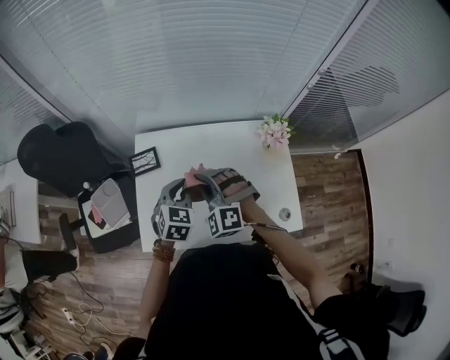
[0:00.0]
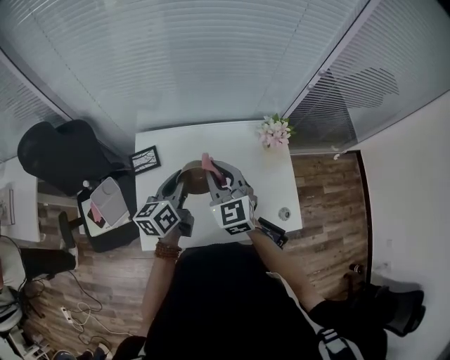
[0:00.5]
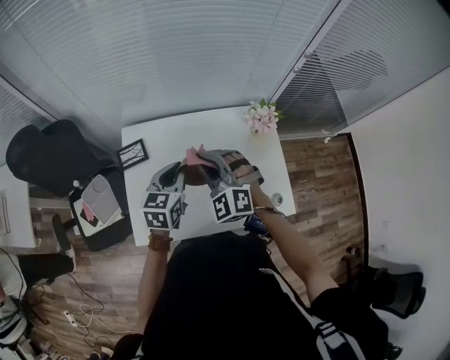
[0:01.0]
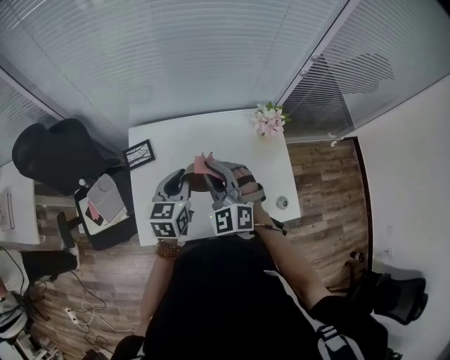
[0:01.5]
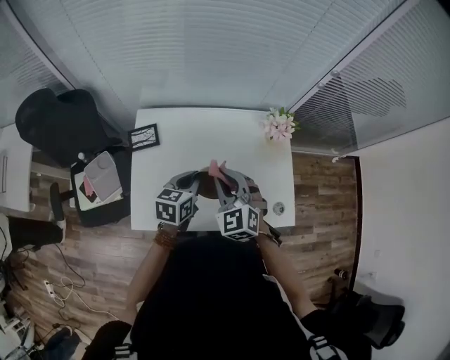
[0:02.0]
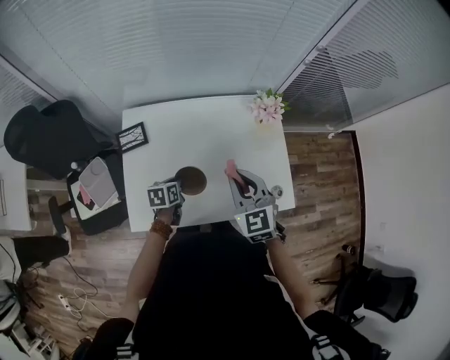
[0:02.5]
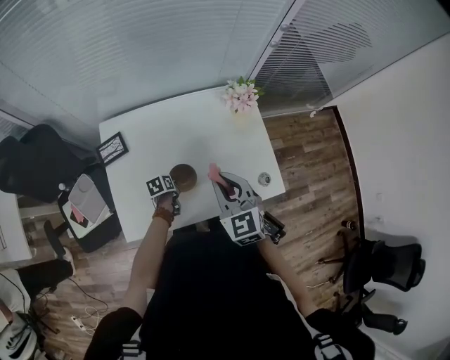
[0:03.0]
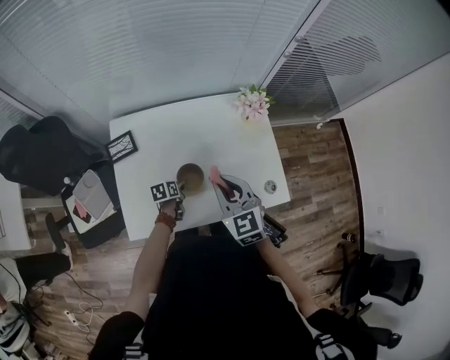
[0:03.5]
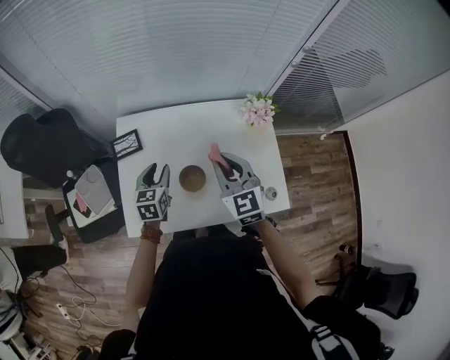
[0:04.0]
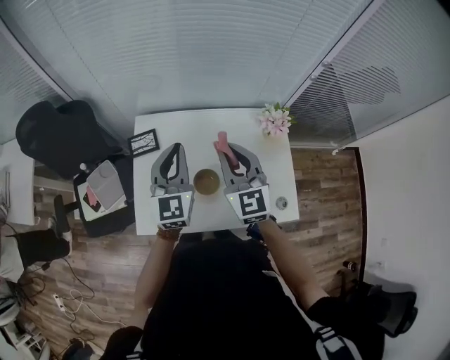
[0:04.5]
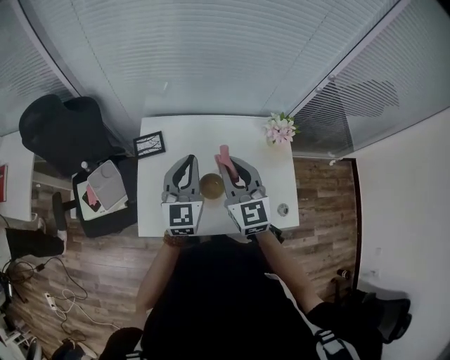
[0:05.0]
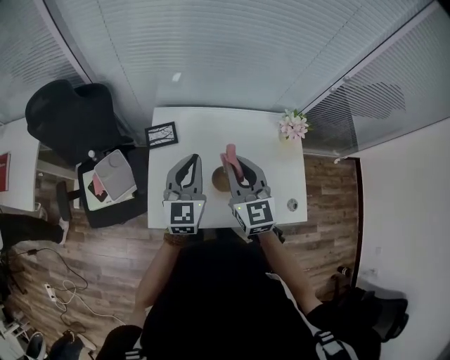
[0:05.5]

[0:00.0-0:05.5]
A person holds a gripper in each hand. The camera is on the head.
0:00.0 to 0:02.0: The right gripper shifts some 5 cm to the right, and rotates some 30 degrees; the left gripper moves some 5 cm upward and comes back, and changes its angle by approximately 30 degrees.
0:02.0 to 0:03.5: The left gripper goes approximately 25 cm downward, swivels roughly 30 degrees, and opens up, while the right gripper moves to the right, approximately 5 cm, and changes its angle by about 20 degrees.
0:03.5 to 0:05.5: The right gripper heads to the left, upward and forward, covering approximately 15 cm, while the left gripper shifts approximately 35 cm upward, angles its fingers upward, by approximately 40 degrees, and closes.

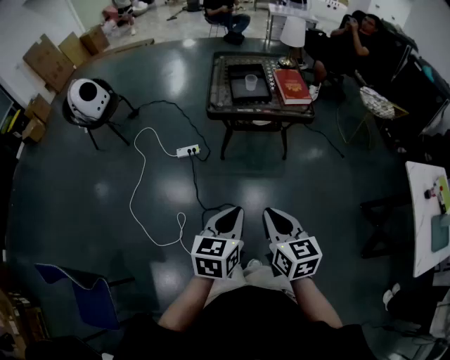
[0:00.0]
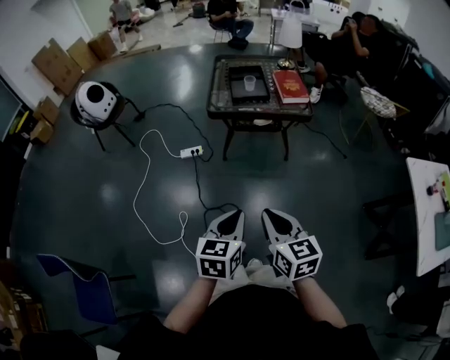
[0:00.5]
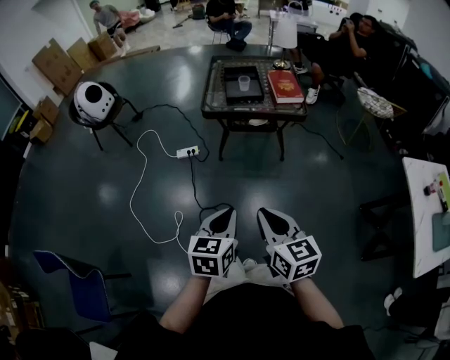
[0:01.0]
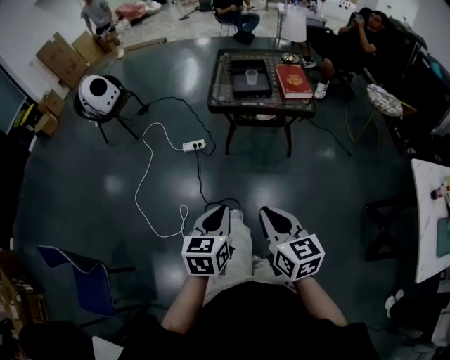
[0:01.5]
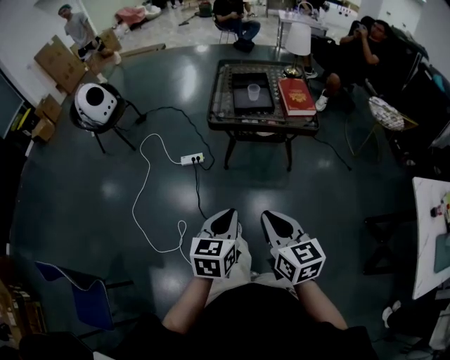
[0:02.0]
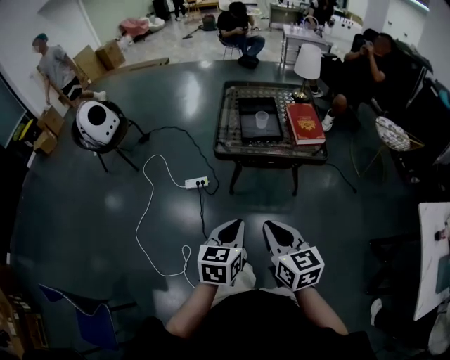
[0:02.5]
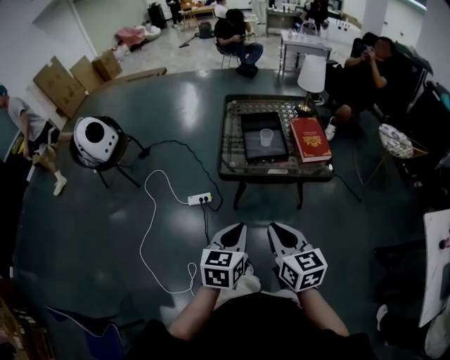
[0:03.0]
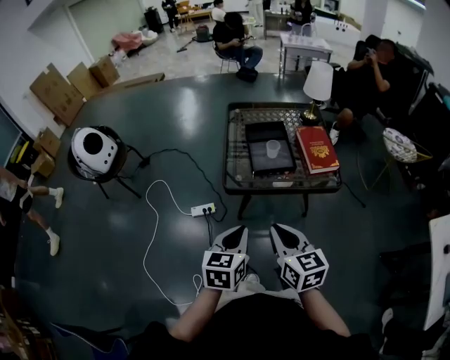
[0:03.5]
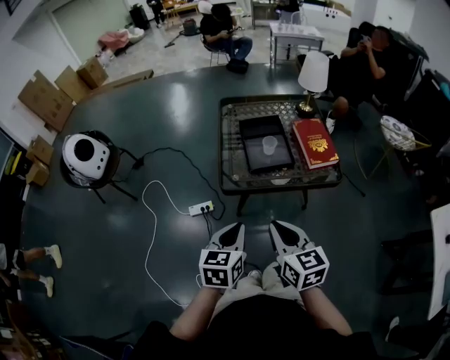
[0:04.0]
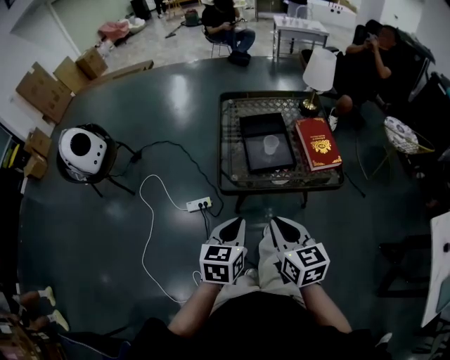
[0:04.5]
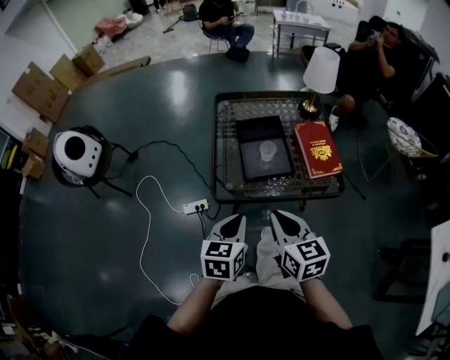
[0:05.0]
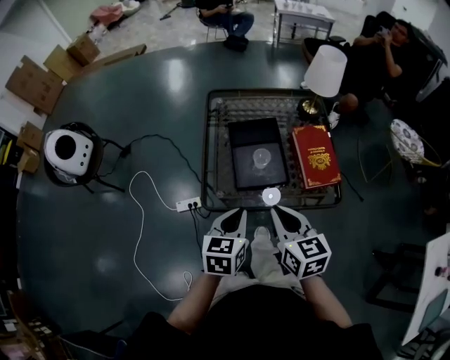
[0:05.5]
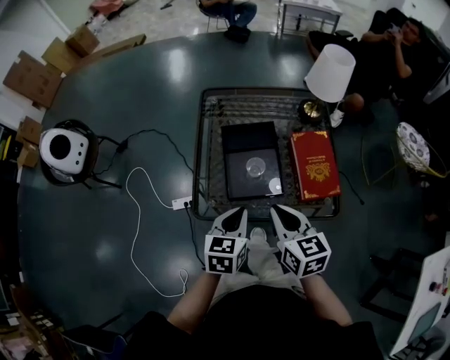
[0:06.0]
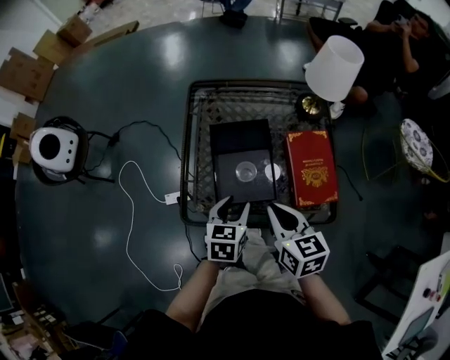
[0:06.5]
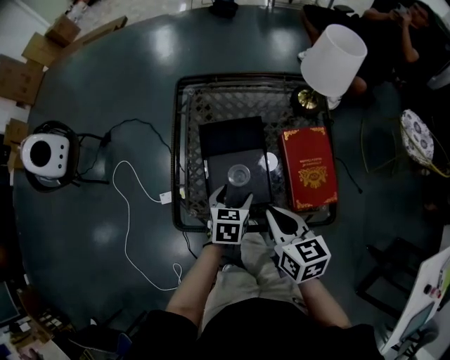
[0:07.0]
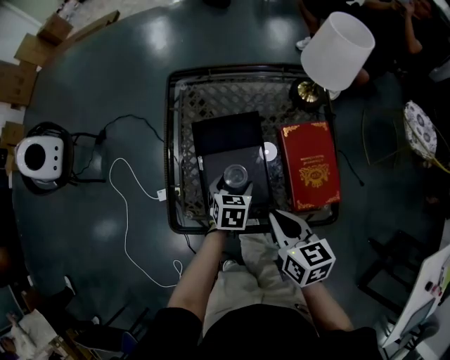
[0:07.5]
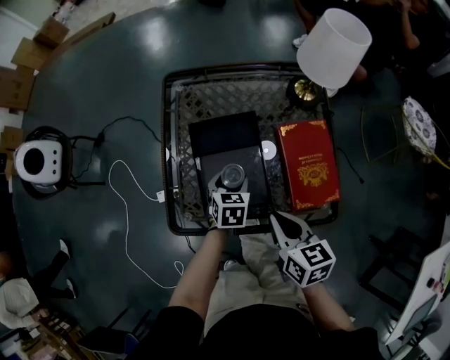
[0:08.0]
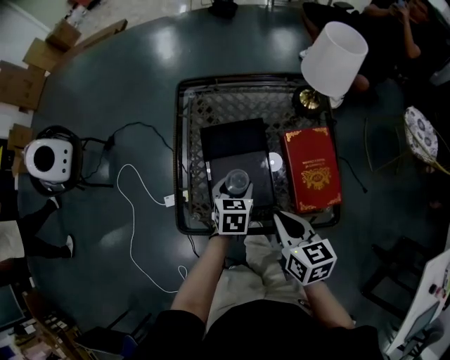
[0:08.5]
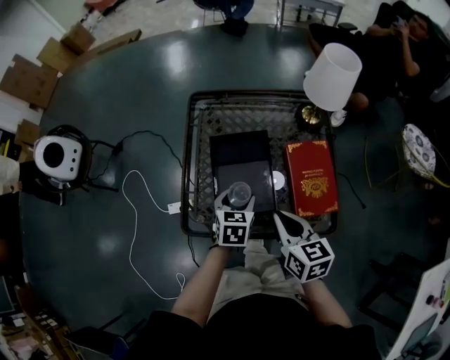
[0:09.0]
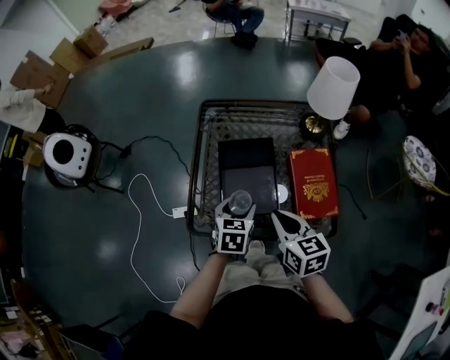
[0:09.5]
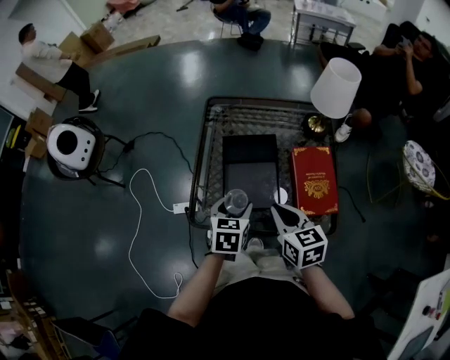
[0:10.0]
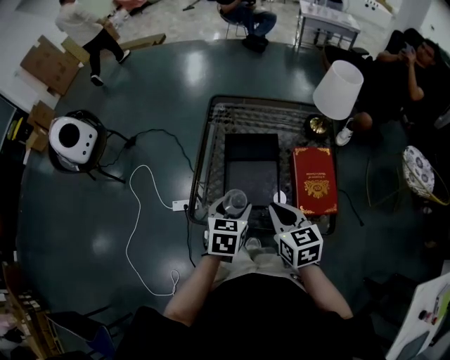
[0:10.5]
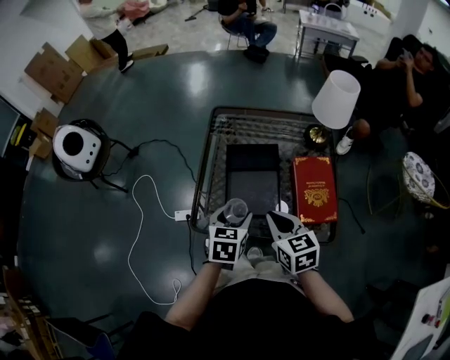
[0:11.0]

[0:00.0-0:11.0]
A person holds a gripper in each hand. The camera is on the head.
0:00.0 to 0:02.0: The right gripper shifts by about 5 cm, while the left gripper moves approximately 5 cm.
0:02.0 to 0:03.5: Both grippers travel together forward, approximately 25 cm.
0:03.5 to 0:05.5: The grippers both shift forward by approximately 20 cm.
0:05.5 to 0:07.5: The left gripper goes some 30 cm forward, downward and to the right, turns by about 20 degrees, and opens. Meanwhile the right gripper goes roughly 20 cm forward, downward and to the right.
0:07.5 to 0:09.0: The left gripper heads upward, covering roughly 10 cm.
0:09.0 to 0:11.0: The left gripper is displaced upward and backward by about 10 cm.

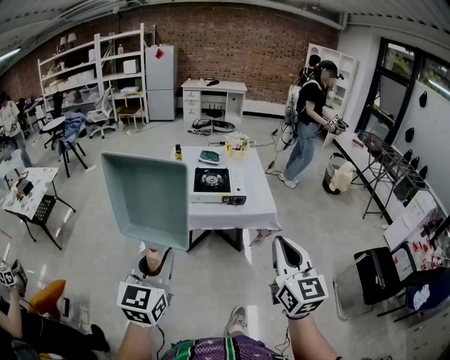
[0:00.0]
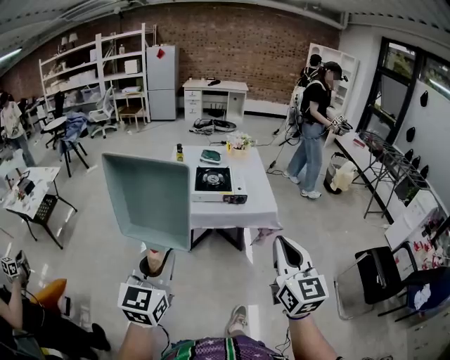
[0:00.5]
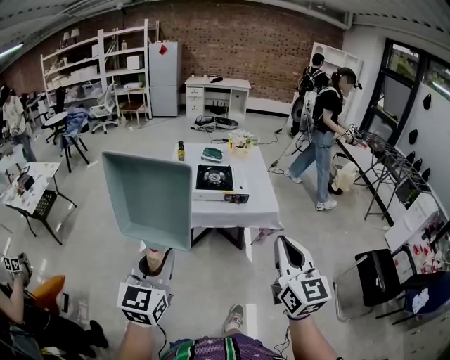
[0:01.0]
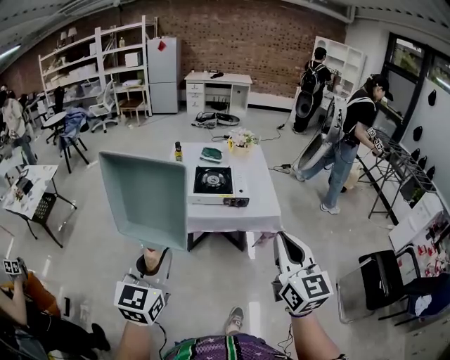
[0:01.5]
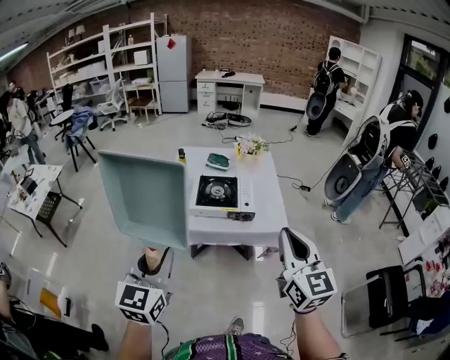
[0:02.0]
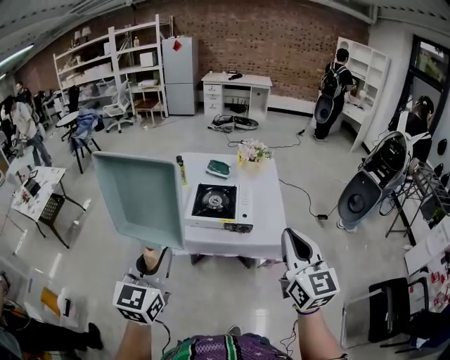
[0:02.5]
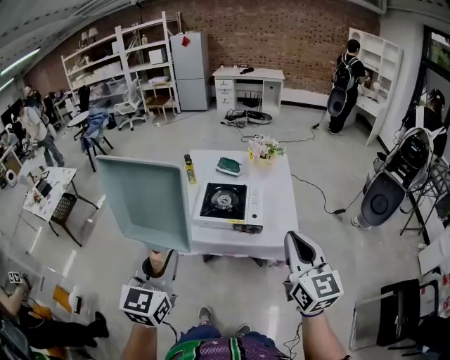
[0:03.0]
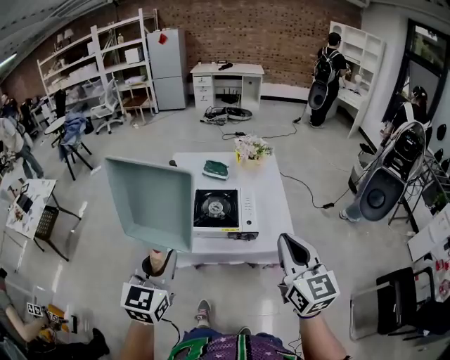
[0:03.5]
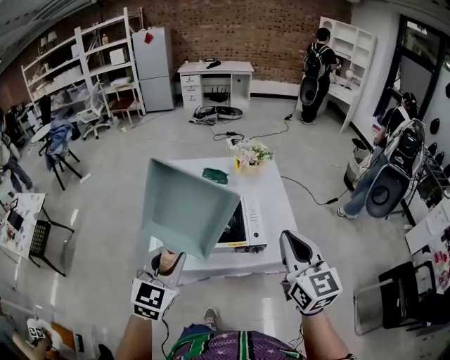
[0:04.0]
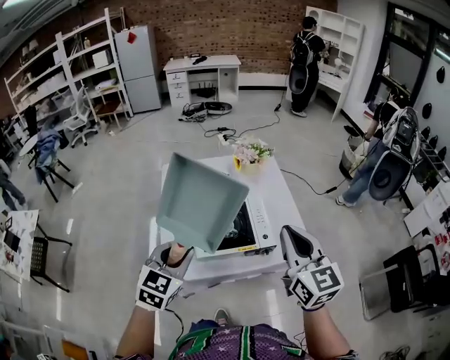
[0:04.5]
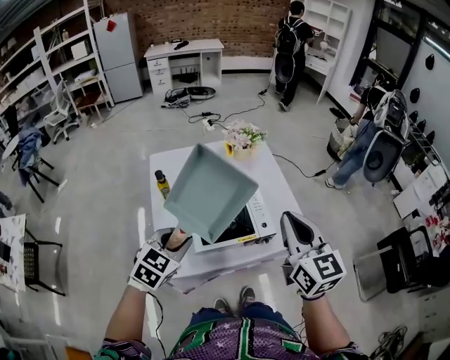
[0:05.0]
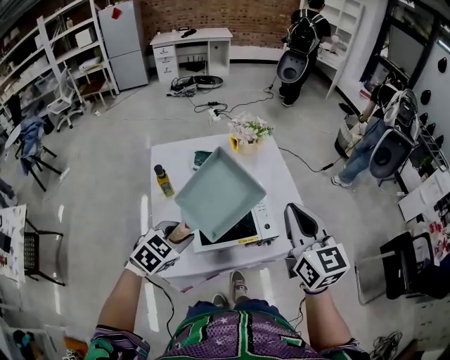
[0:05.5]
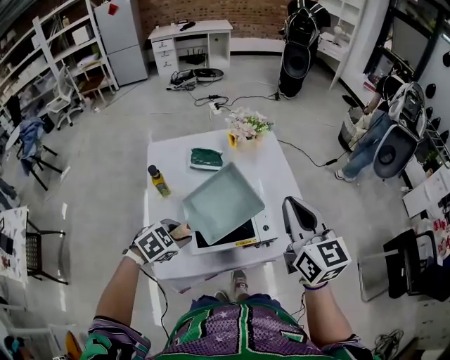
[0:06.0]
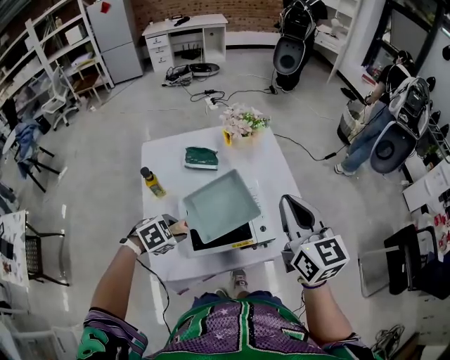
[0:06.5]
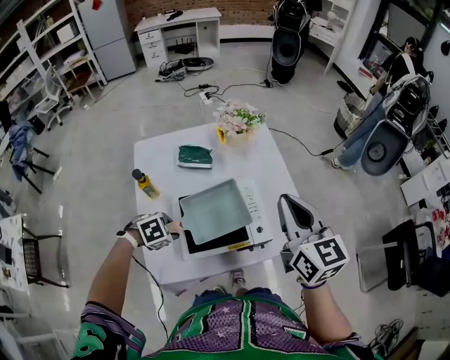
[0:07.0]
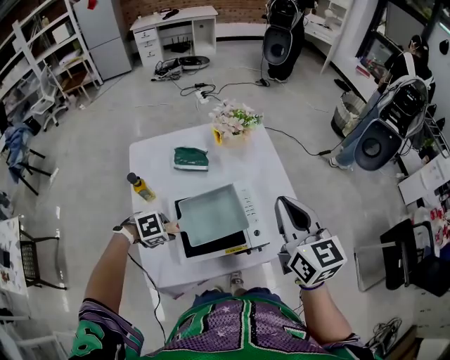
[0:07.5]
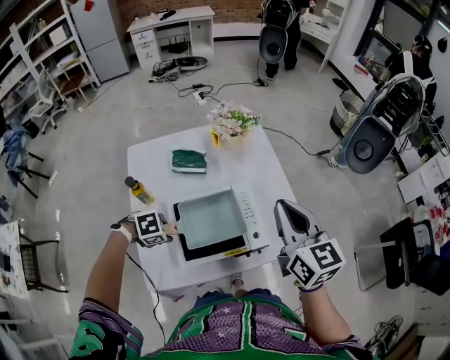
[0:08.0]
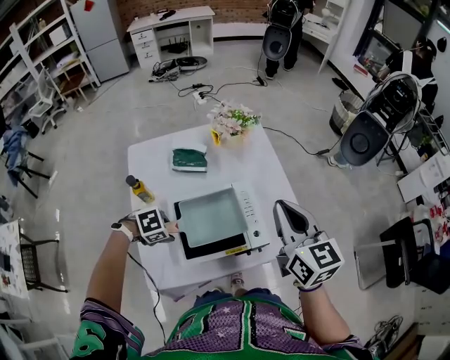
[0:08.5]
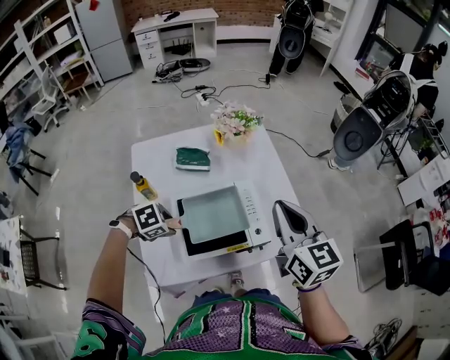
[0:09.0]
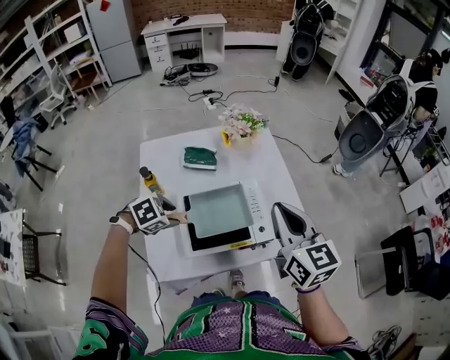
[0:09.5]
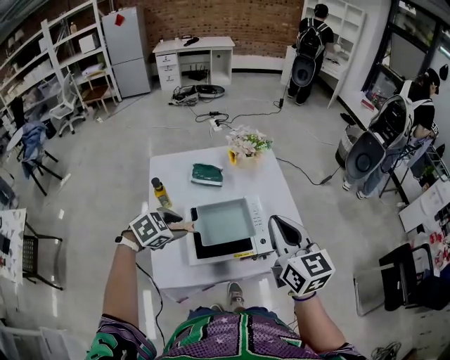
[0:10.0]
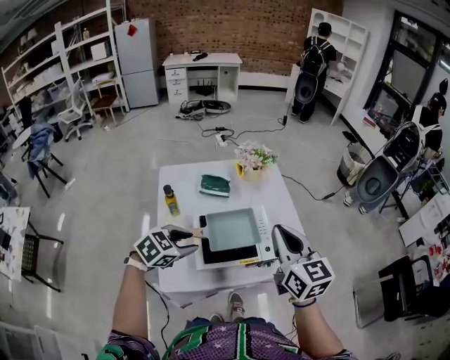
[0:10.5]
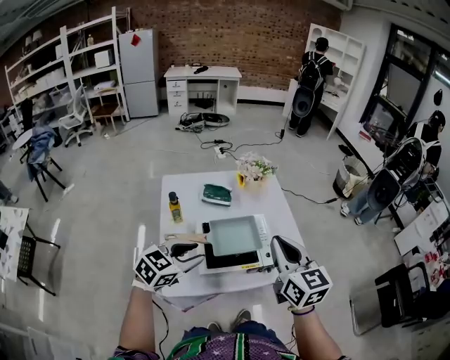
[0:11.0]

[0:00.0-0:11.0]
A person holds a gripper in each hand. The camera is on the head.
0:00.0 to 0:02.0: The grippers both shift forward by approximately 15 cm.
0:02.0 to 0:03.5: The two grippers go roughly 15 cm forward.
0:03.5 to 0:05.5: The left gripper changes place by approximately 30 cm, and tilts its fingers some 30 degrees downward. Meanwhile the right gripper ends up approximately 20 cm from where it was.
0:05.5 to 0:07.5: The left gripper goes about 15 cm downward, and changes its angle by roughly 40 degrees. The right gripper moves some 10 cm.
0:07.5 to 0:09.0: The left gripper opens up.
0:09.0 to 0:11.0: The left gripper goes some 20 cm upward and backward, and points its fingers some 50 degrees further upward. The right gripper shifts roughly 10 cm backward.
